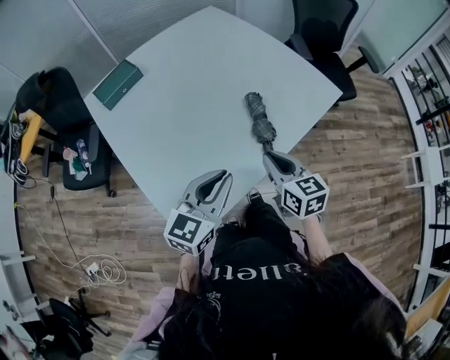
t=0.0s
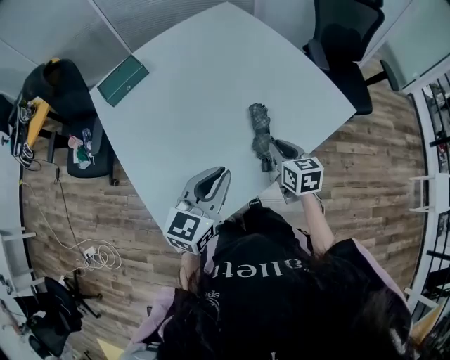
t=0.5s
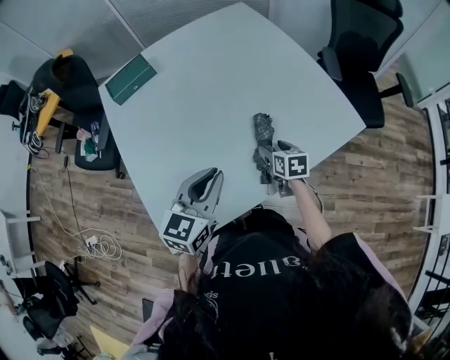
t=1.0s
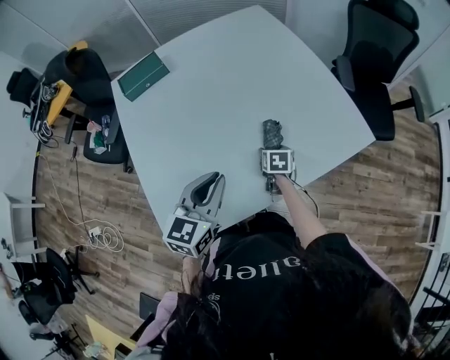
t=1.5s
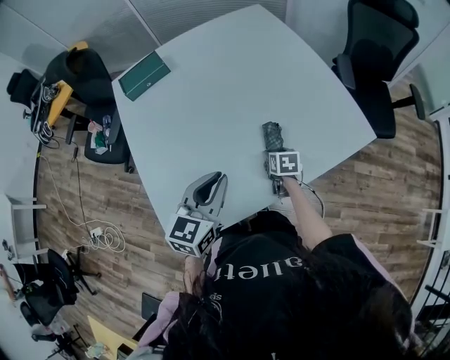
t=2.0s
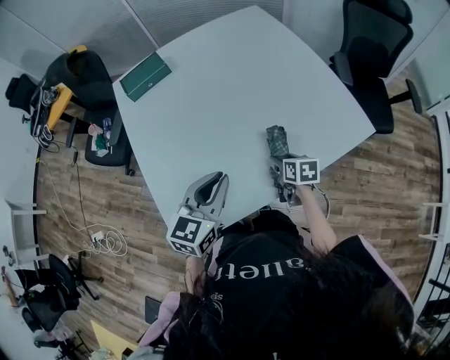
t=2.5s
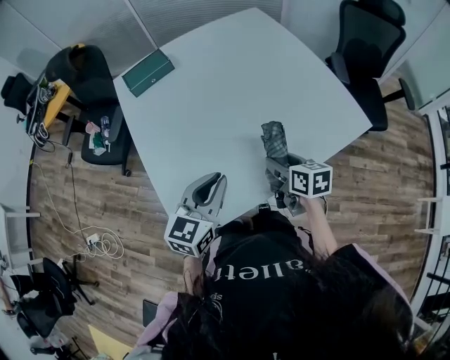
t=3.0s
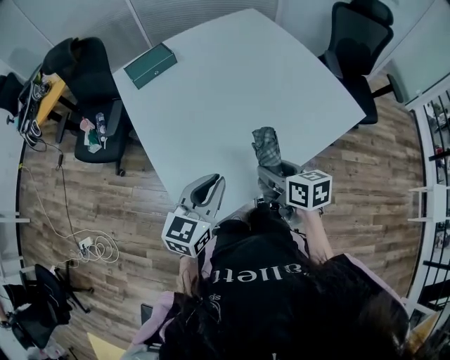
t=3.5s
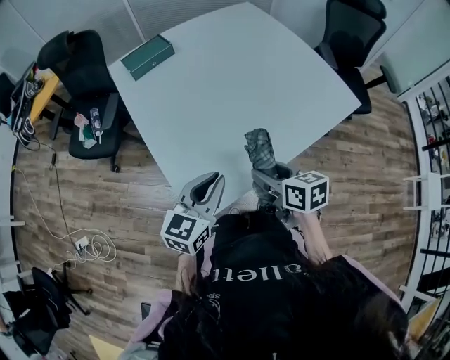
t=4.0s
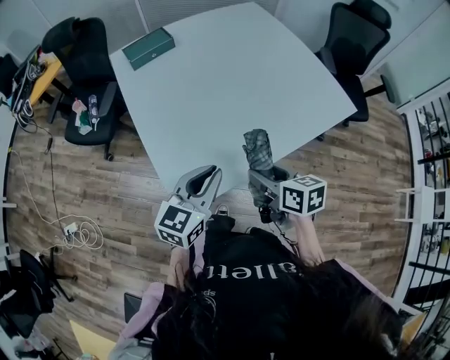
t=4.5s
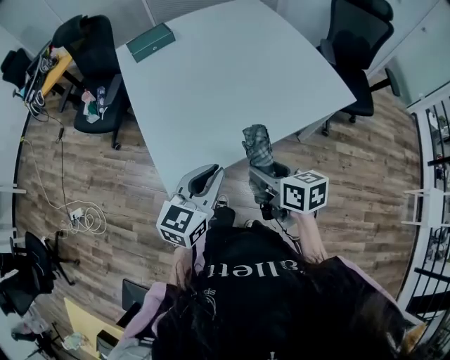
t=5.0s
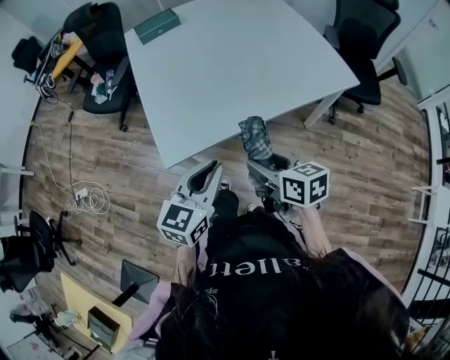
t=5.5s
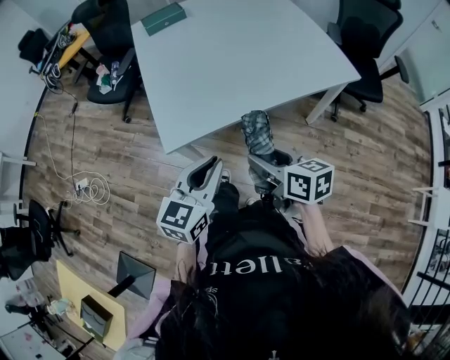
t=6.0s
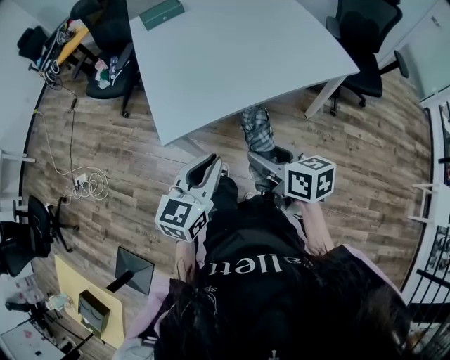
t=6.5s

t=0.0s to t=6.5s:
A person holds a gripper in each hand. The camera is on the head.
t=0.0s to t=2.0s: The left gripper goes some 10 cm forward, and swivels some 20 degrees, while the right gripper heads downward and forward, covering roughly 30 cm, swivels approximately 30 degrees, and opens.
t=2.0s to t=4.5s: The left gripper shifts roughly 20 cm backward and to the left. The right gripper moves backward, upward and to the left, about 35 cm, and rotates about 20 degrees.
t=4.5s to t=6.5s: Both grippers travel together backward, approximately 20 cm.

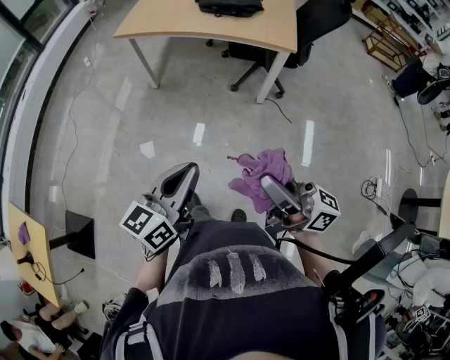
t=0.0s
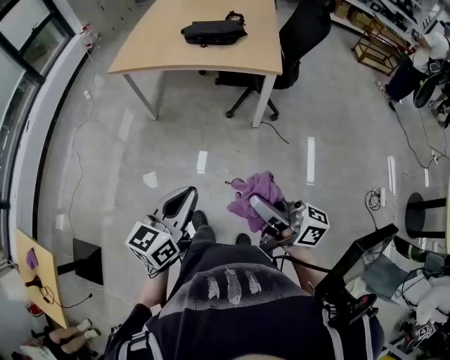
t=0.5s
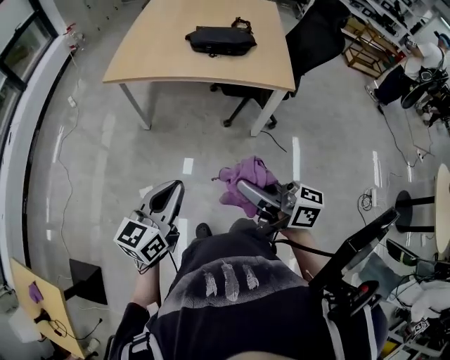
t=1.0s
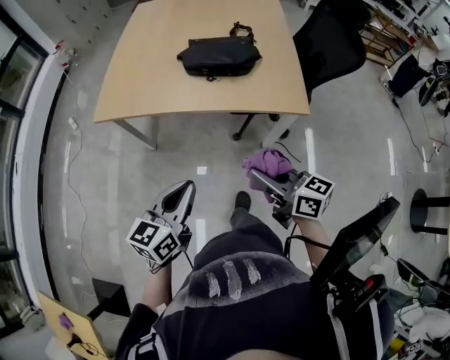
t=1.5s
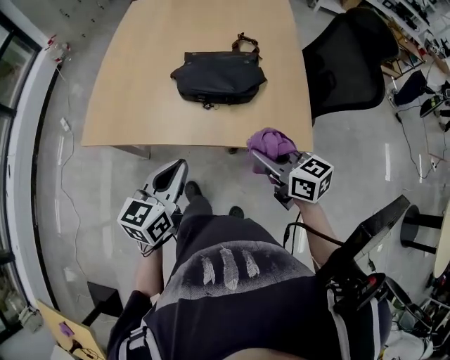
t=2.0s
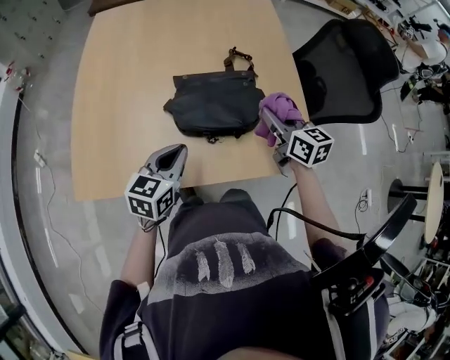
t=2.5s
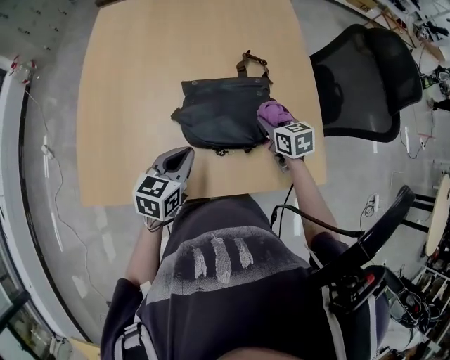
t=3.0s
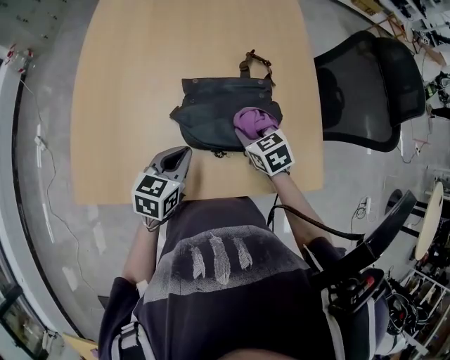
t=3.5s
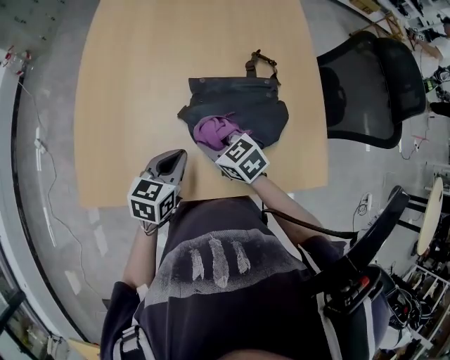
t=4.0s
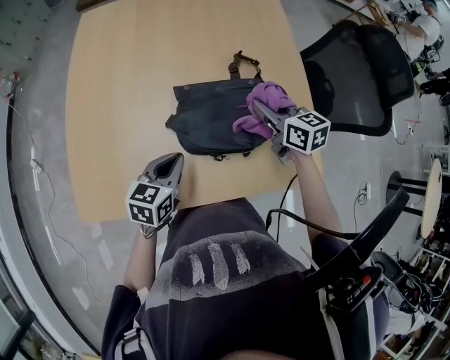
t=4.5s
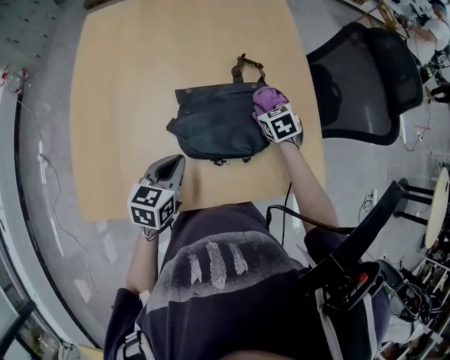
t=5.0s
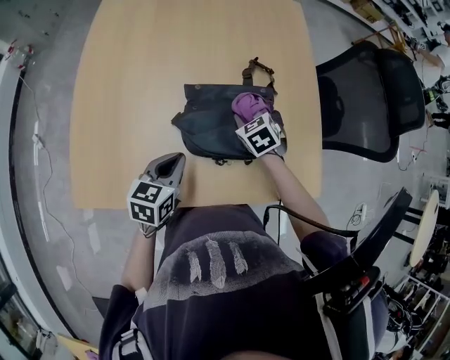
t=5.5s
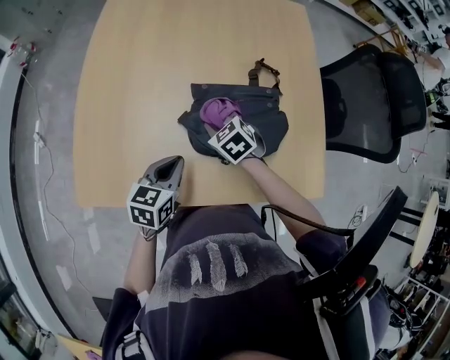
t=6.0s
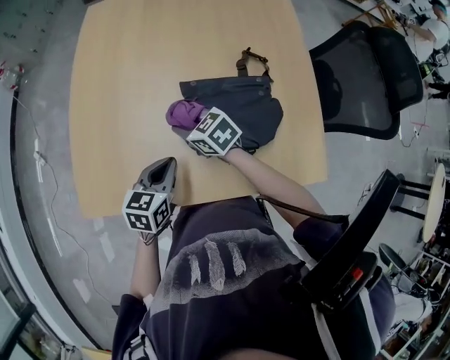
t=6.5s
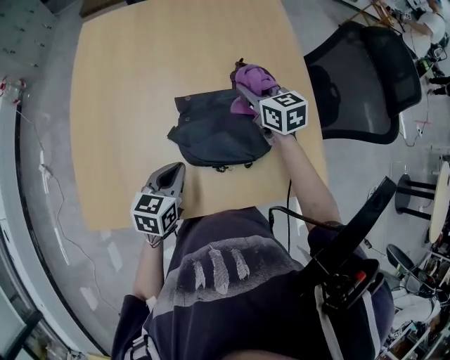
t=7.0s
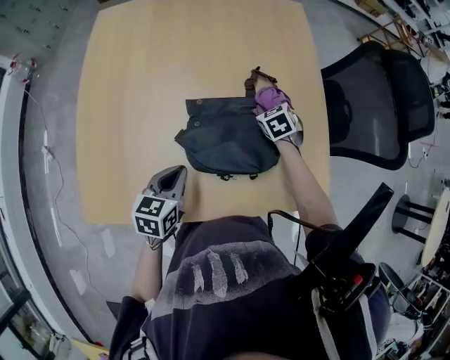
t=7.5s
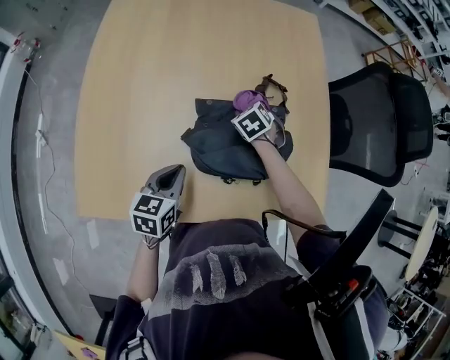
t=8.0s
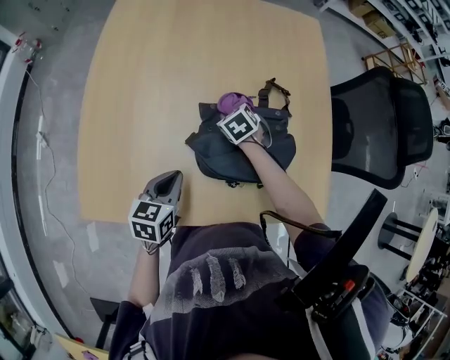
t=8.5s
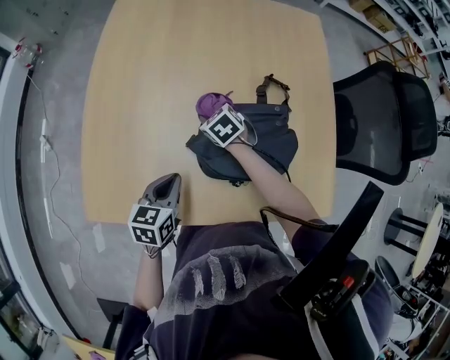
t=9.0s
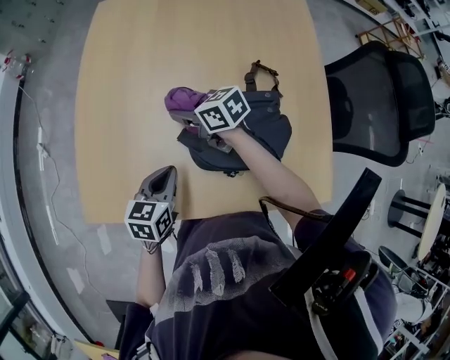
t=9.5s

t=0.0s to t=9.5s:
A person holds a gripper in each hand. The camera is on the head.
t=0.0s to t=2.0s: Both grippers are carried forward, some 60 cm. The right gripper points its fingers approximately 40 degrees further downward.
t=2.0s to t=4.0s: The right gripper travels forward, to the left and downward by about 35 cm, and changes its angle by approximately 30 degrees; the left gripper travels forward and downward by some 30 cm.
t=4.0s to t=5.5s: The right gripper goes roughly 20 cm to the right and forward, and swivels roughly 30 degrees.
t=5.5s to t=7.5s: The right gripper goes upward and returns, roughly 10 cm each way.
t=7.5s to t=9.5s: The right gripper changes place by about 30 cm, and rotates roughly 50 degrees.

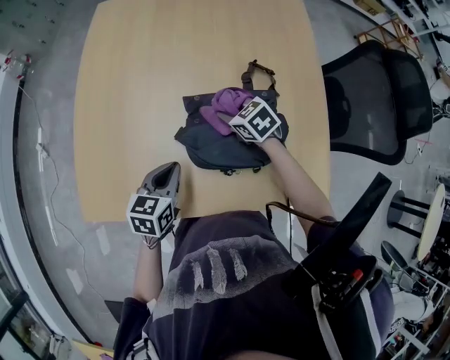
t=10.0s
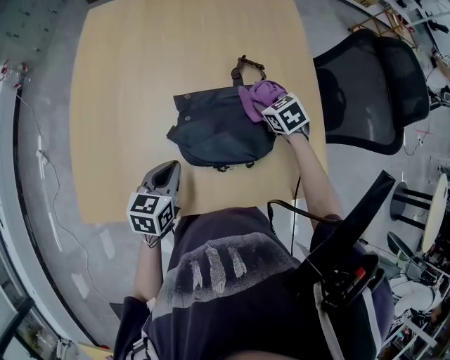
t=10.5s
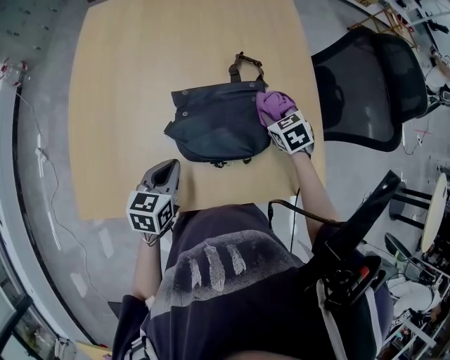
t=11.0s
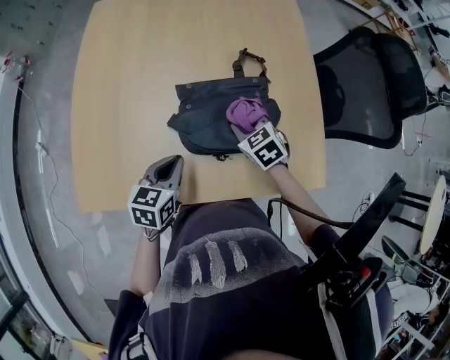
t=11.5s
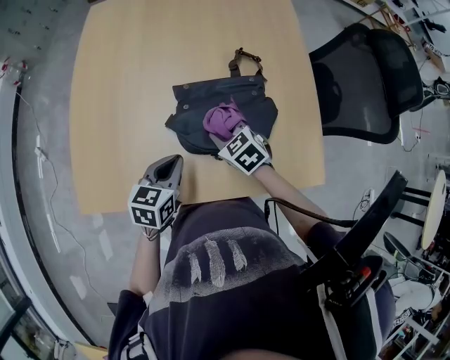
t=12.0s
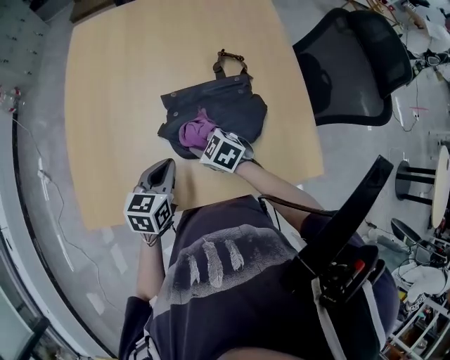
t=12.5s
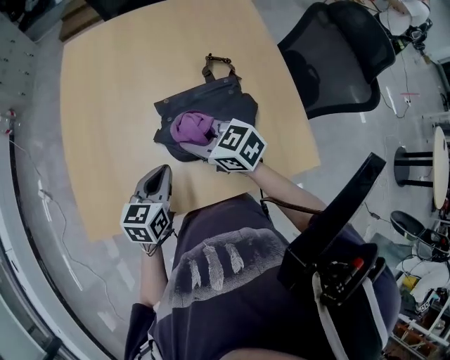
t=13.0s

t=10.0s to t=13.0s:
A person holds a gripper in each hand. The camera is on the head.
t=10.0s to t=11.5s: The right gripper heads backward, covering approximately 10 cm, and travels to the right and back again, some 15 cm each way.
t=11.5s to t=13.0s: The right gripper moves to the left and upward, about 15 cm, and changes its angle by about 30 degrees.

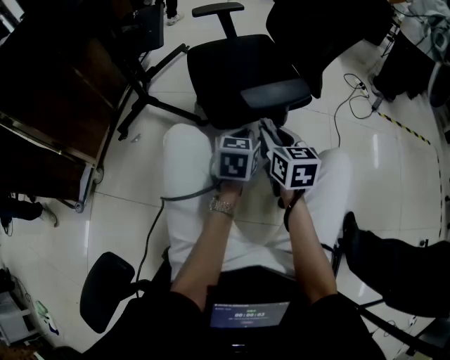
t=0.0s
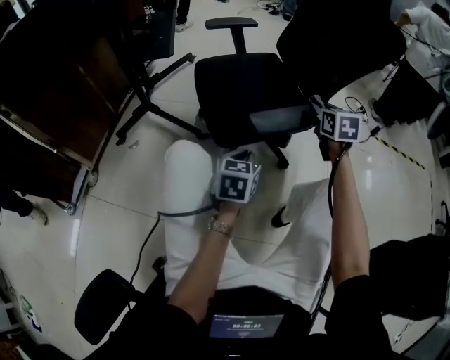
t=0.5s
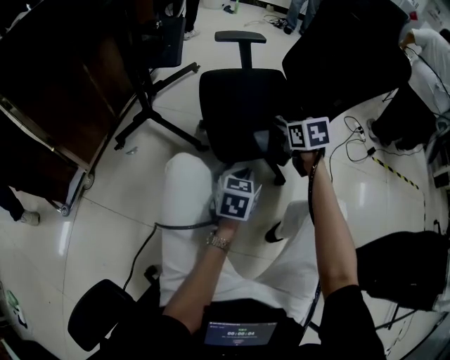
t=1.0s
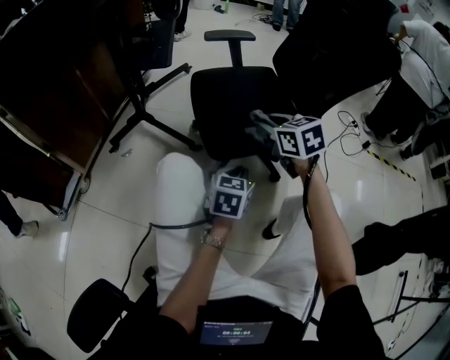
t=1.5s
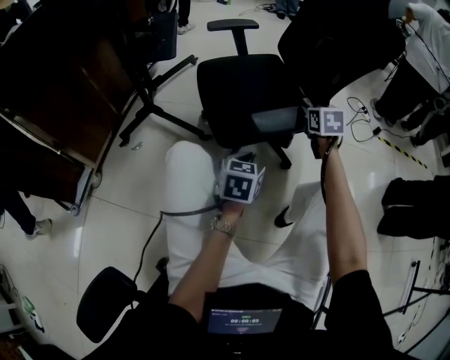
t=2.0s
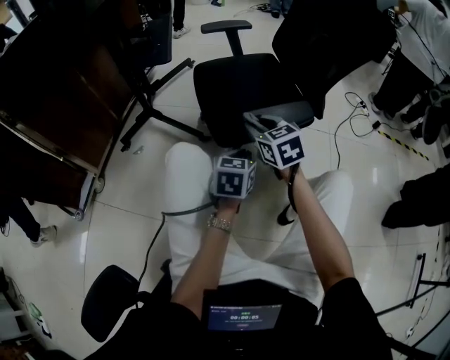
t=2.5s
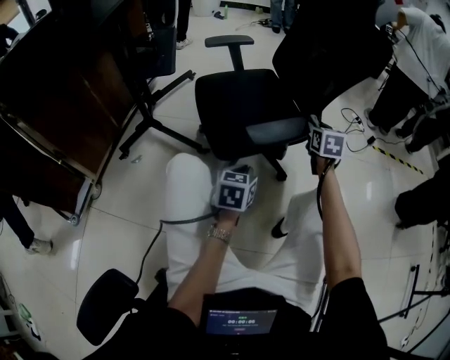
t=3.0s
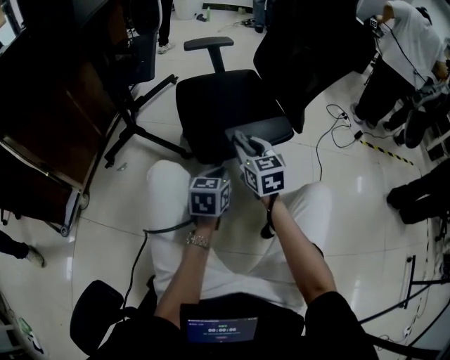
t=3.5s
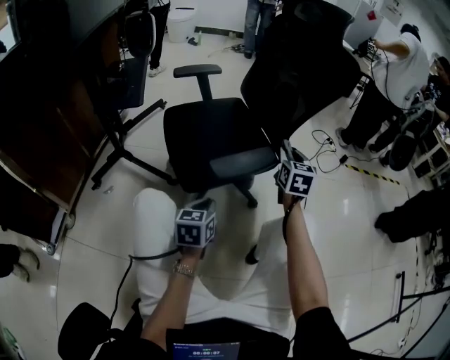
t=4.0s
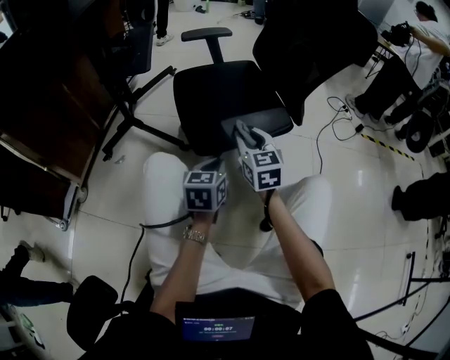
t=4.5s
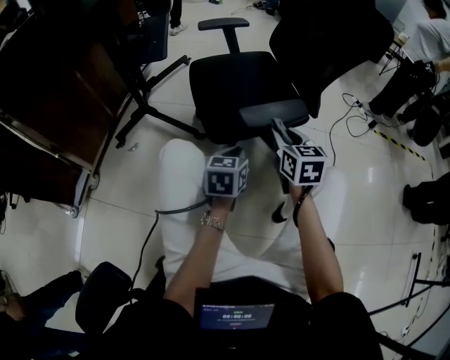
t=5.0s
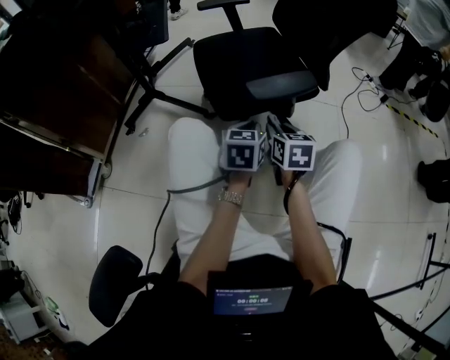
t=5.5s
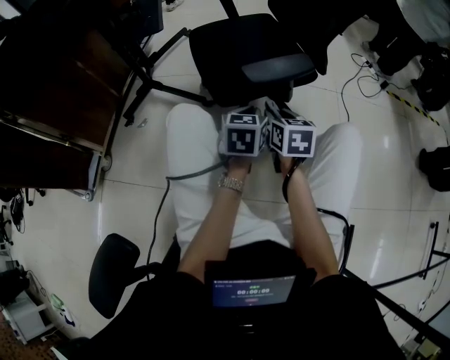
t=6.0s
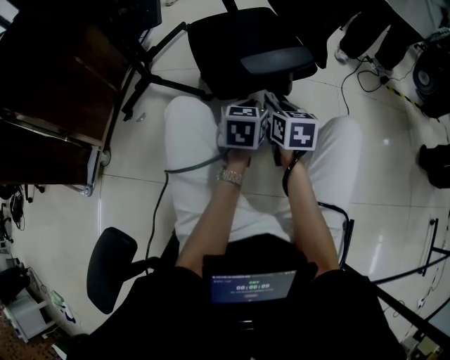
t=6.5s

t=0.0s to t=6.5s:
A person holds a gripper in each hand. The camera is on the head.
t=0.0s to t=2.0s: The right gripper swings left and right, some 15 cm each way, with 2 reversals, and rotates about 20 degrees.
t=2.0s to t=4.5s: The right gripper swings left and right, about 20 cm each way, with 4 reversals, and changes its angle by about 20 degrees.
t=4.5s to t=6.5s: The right gripper travels backward and downward by approximately 10 cm, and turns by approximately 30 degrees.

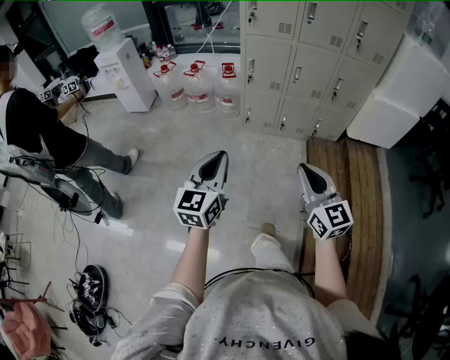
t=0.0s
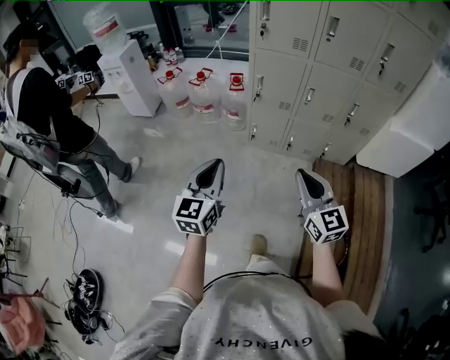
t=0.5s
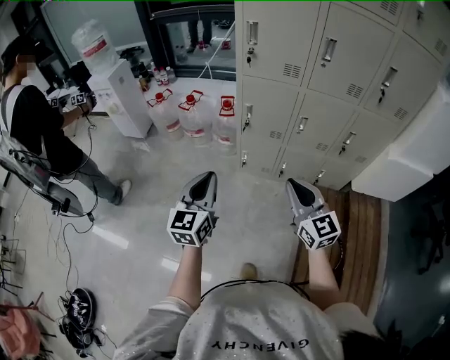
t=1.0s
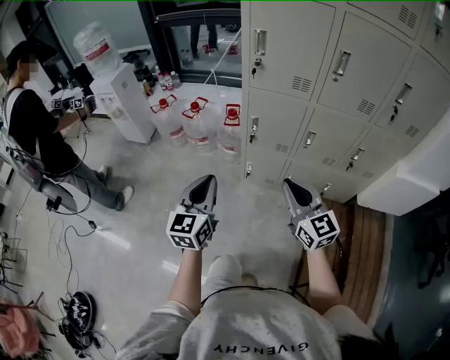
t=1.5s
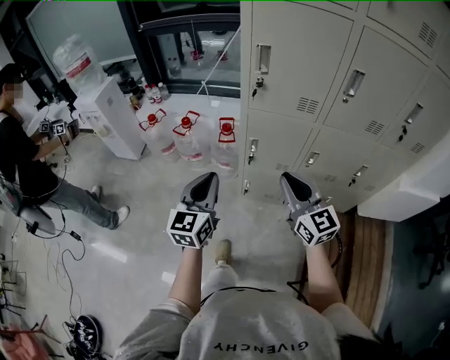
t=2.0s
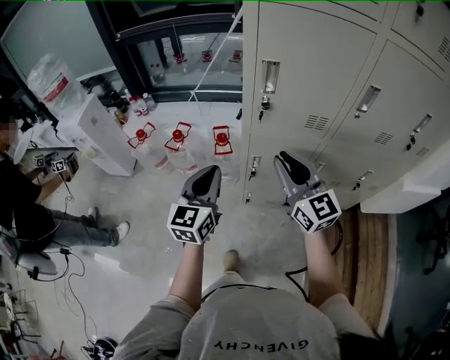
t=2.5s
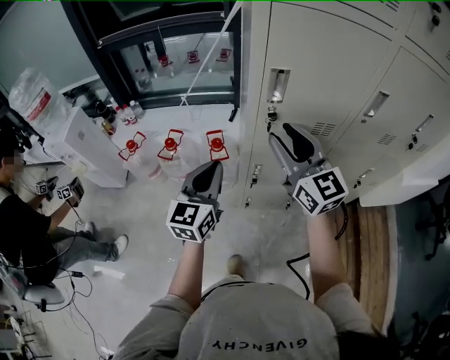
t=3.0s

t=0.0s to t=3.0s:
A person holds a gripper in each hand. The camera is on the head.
t=0.0s to t=1.5s: The two grippers go roughly 40 cm forward.
t=1.5s to t=3.0s: The two grippers go some 35 cm forward. The right gripper opens its fingers.
